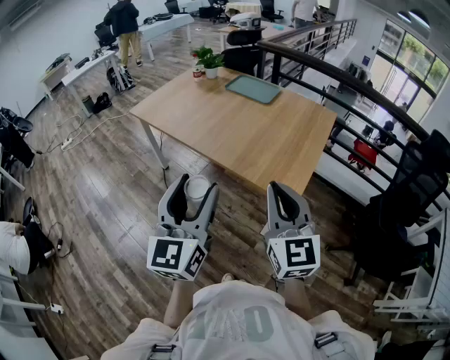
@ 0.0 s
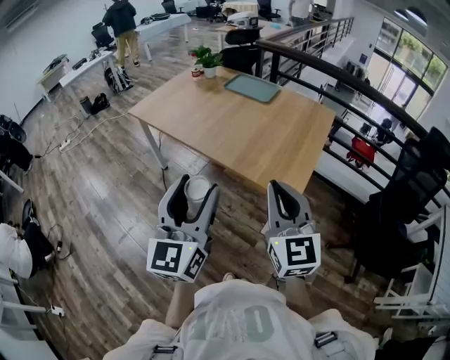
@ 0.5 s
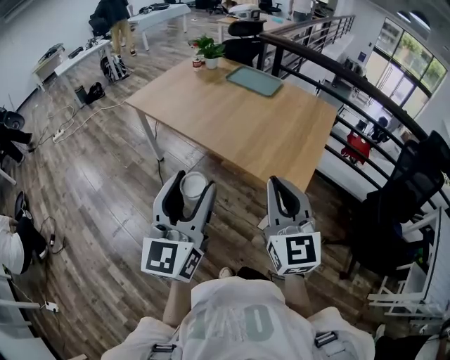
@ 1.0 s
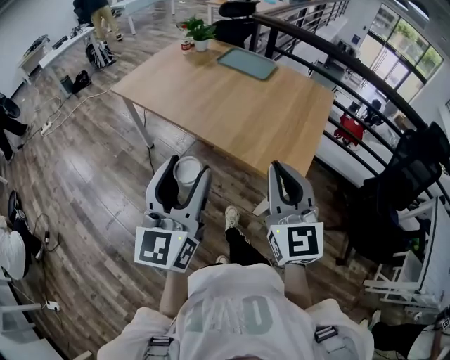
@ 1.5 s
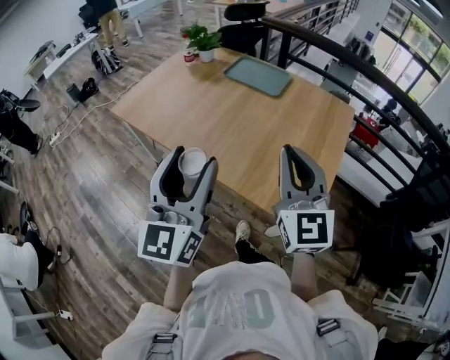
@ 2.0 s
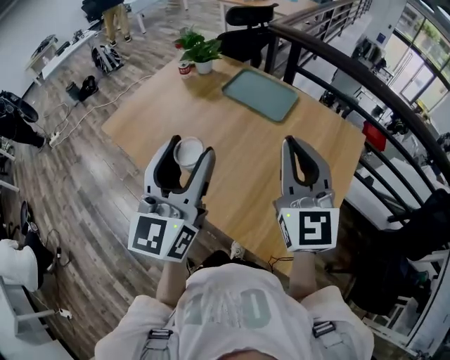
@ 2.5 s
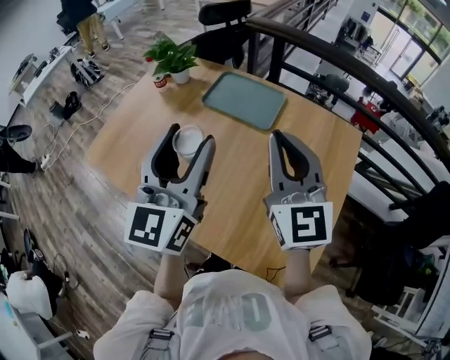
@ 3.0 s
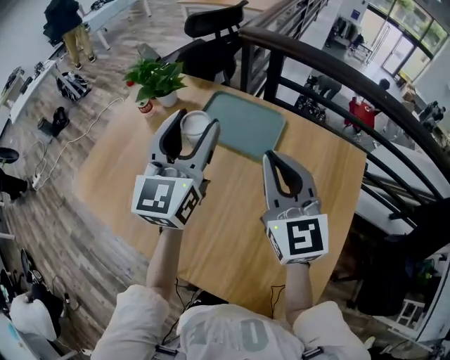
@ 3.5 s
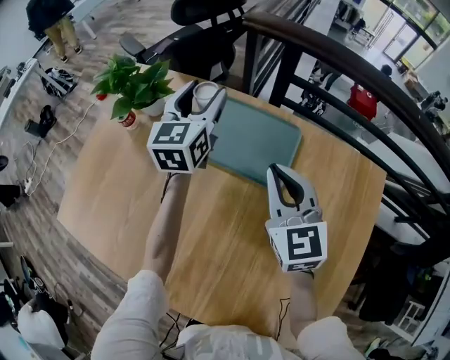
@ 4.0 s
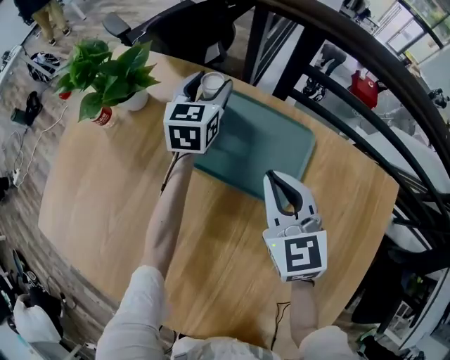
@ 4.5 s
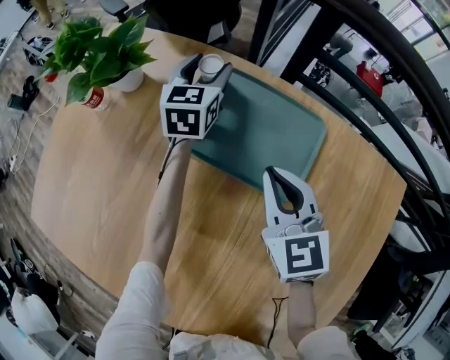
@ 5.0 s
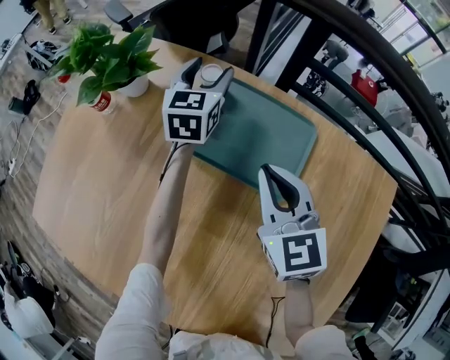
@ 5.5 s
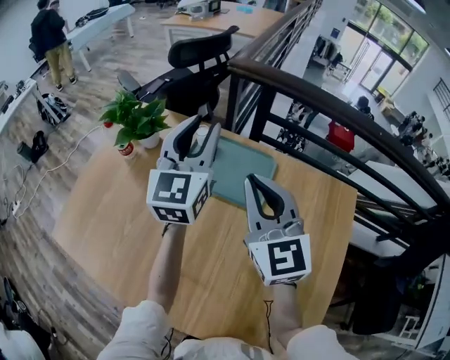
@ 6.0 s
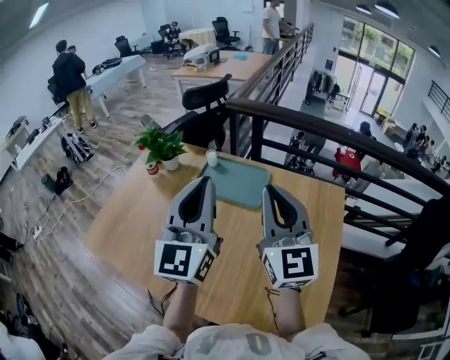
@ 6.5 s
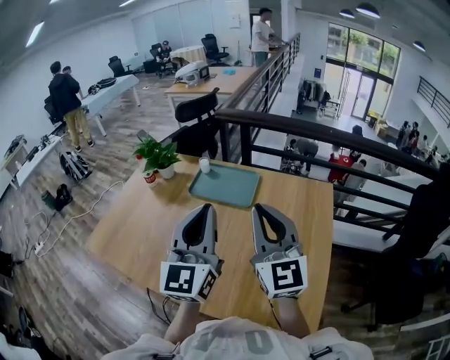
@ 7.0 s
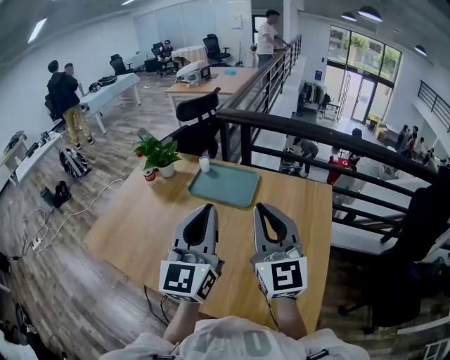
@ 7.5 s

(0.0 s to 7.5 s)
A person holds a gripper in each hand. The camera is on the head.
0.0 s - 2.0 s: Both grippers travel together forward, approximately 25 cm.
2.0 s - 4.0 s: The two grippers travel together, forward, approximately 70 cm. The left gripper rotates roughly 20 degrees. The right gripper swivels roughly 20 degrees.
4.0 s - 5.5 s: The right gripper shifts approximately 10 cm downward; the left gripper is displaced downward and forward by roughly 15 cm.
5.5 s - 7.5 s: The right gripper is displaced backward and upward by some 40 cm, and points its fingers about 30 degrees further upward. The left gripper is displaced backward and upward by about 60 cm, swivels roughly 30 degrees, and closes up.

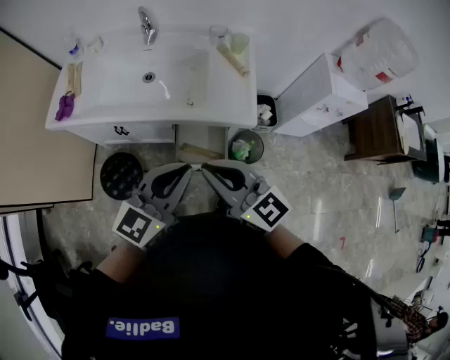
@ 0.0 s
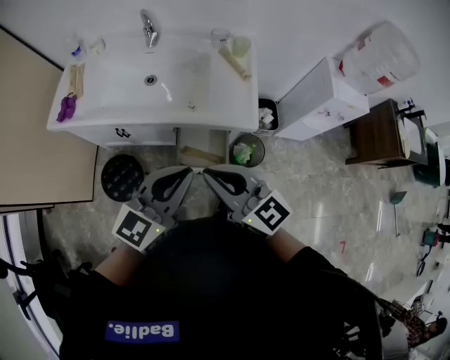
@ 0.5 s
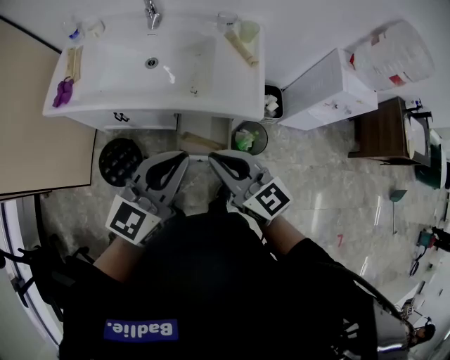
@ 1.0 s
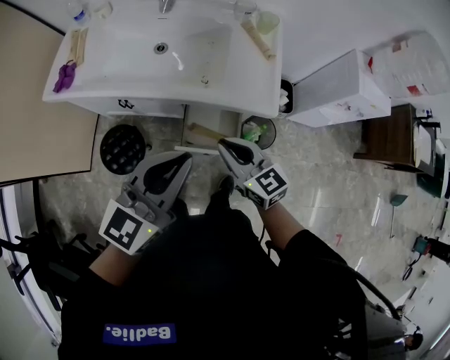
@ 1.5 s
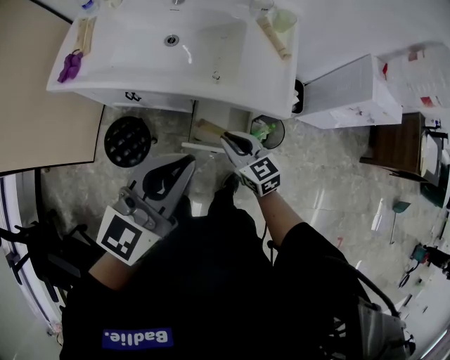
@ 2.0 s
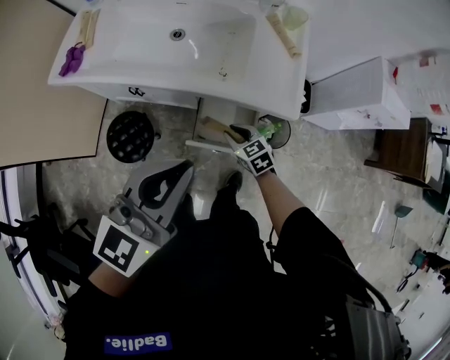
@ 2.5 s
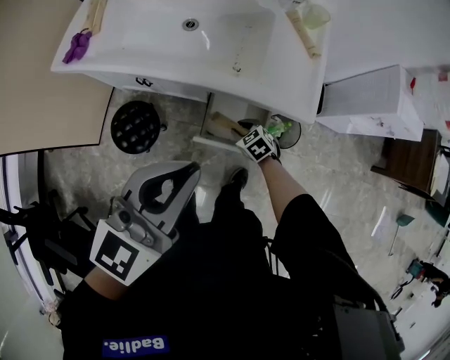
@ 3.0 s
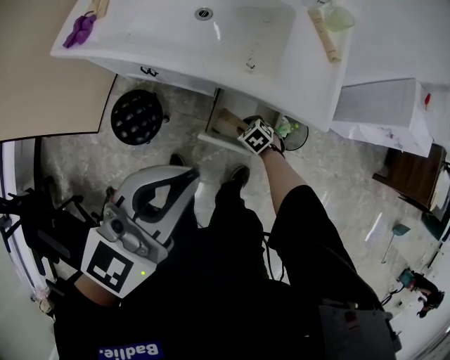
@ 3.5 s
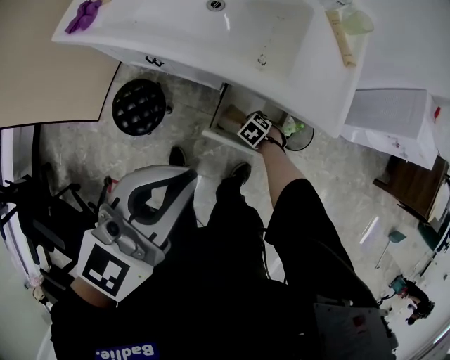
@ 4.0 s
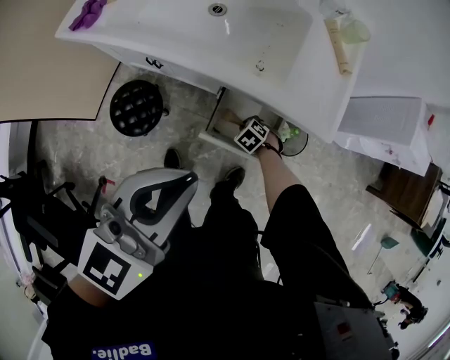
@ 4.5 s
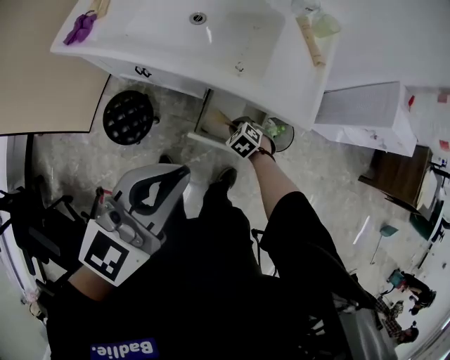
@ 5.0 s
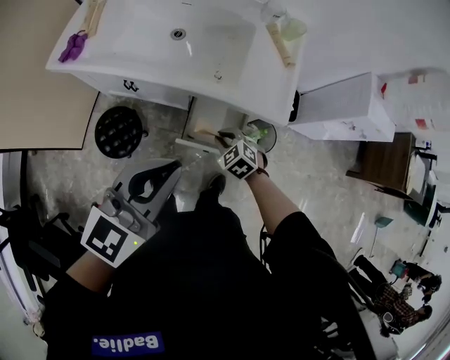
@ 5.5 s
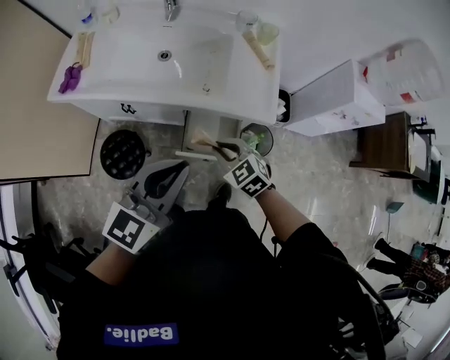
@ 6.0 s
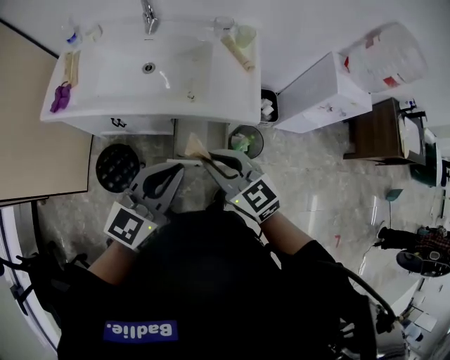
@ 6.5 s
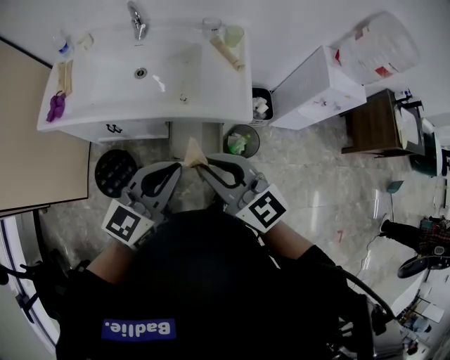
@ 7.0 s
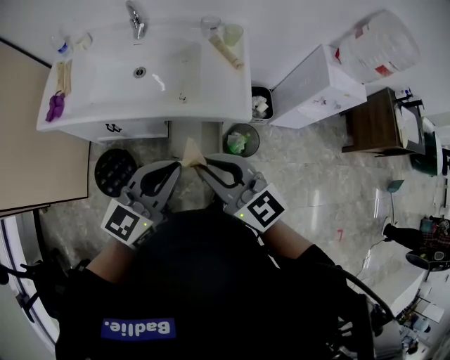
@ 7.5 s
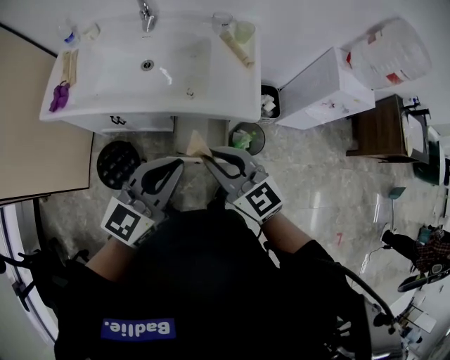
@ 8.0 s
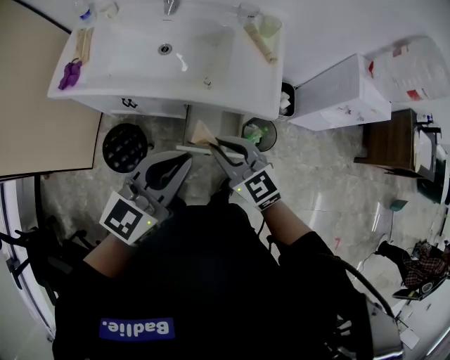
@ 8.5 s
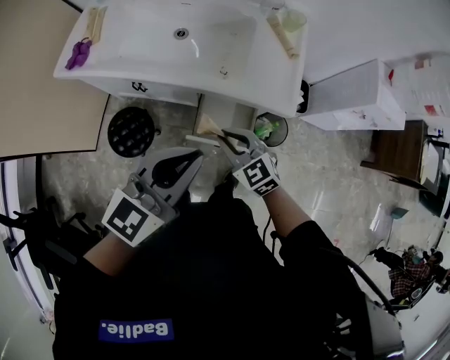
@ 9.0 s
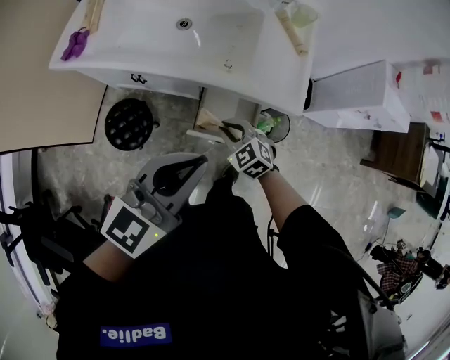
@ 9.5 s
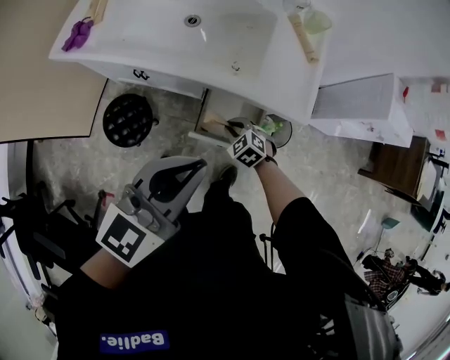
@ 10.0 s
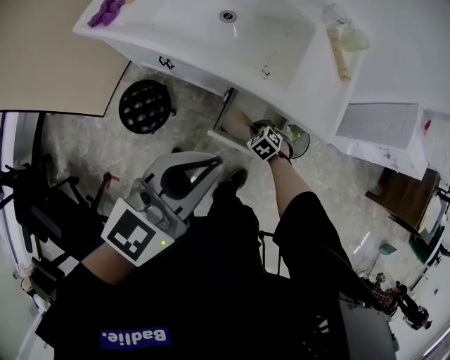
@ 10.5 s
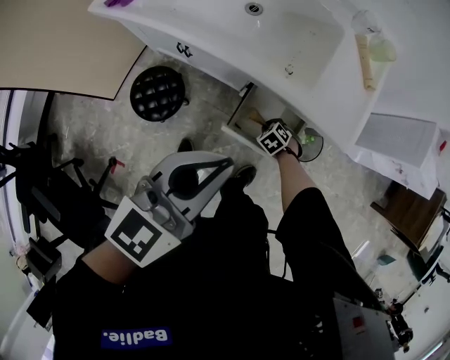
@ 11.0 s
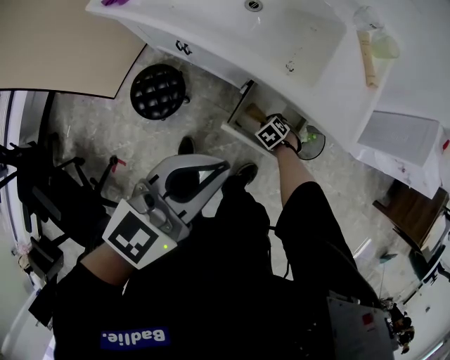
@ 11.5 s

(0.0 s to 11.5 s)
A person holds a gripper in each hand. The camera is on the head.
0.0 s - 2.0 s: The right gripper travels downward by some 25 cm, and changes its angle by about 20 degrees; the left gripper ends up approximately 5 cm from where it was.
2.0 s - 4.0 s: The right gripper heads downward, covering roughly 35 cm, and points its fingers some 50 degrees further downward, while the left gripper travels downward by approximately 5 cm.
4.0 s - 6.0 s: The right gripper moves upward, approximately 35 cm, and angles its fingers upward, by approximately 40 degrees; the left gripper moves approximately 10 cm.
6.0 s - 7.5 s: The right gripper moves upward, roughly 20 cm, and angles its fingers upward, by roughly 30 degrees.
7.5 s - 9.5 s: The right gripper is displaced downward by approximately 30 cm, and tilts its fingers roughly 40 degrees downward; the left gripper shifts by roughly 5 cm.
9.5 s - 11.5 s: The right gripper travels downward by about 25 cm, and points its fingers about 40 degrees further downward, while the left gripper travels downward by approximately 5 cm.

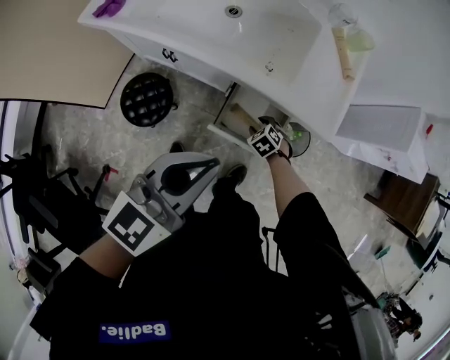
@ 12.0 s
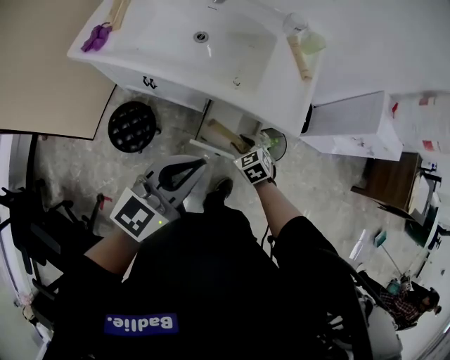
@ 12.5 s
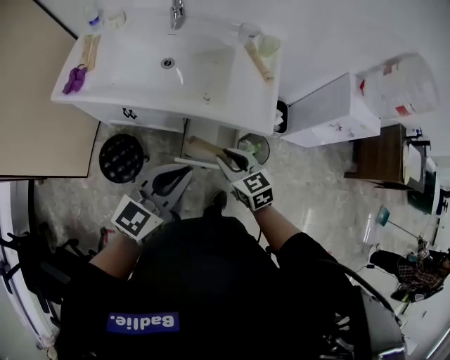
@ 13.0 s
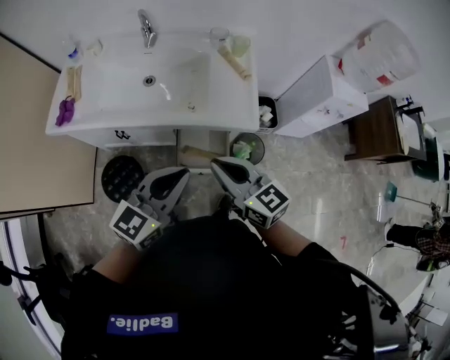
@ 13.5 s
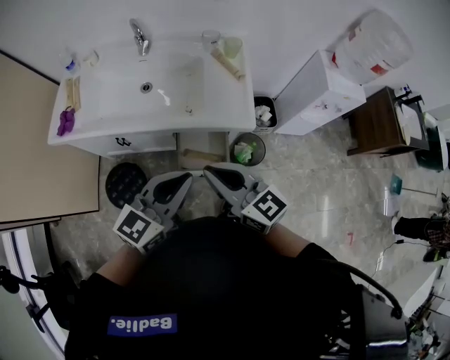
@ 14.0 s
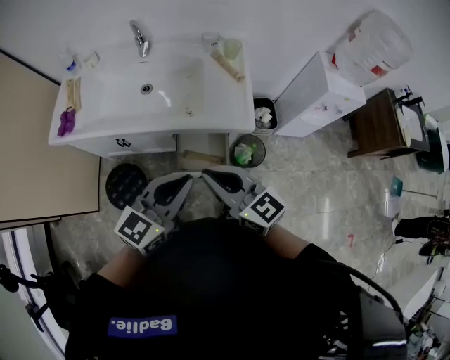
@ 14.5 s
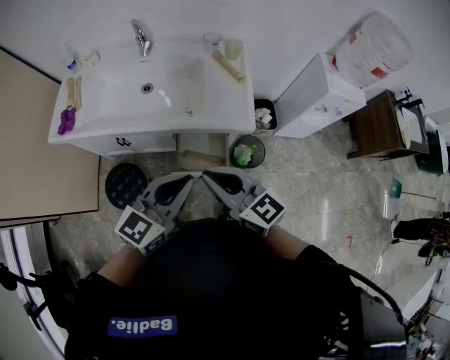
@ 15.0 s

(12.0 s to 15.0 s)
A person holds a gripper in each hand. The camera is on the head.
12.0 s - 13.5 s: The left gripper heads upward and to the right, covering about 10 cm, while the right gripper moves upward, some 50 cm, tilts its fingers approximately 60 degrees upward, and closes.
13.5 s - 15.0 s: The grippers make only small movements.

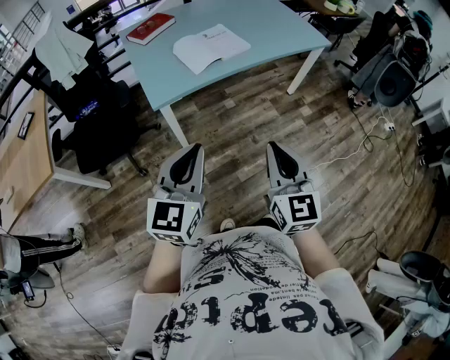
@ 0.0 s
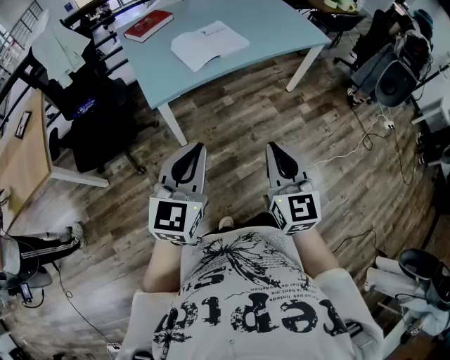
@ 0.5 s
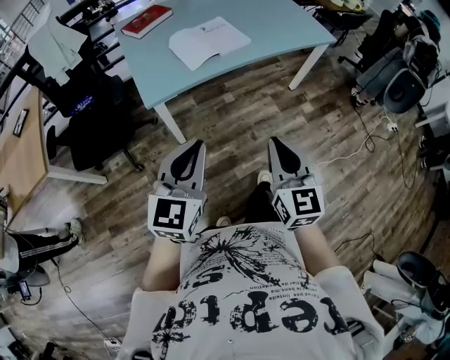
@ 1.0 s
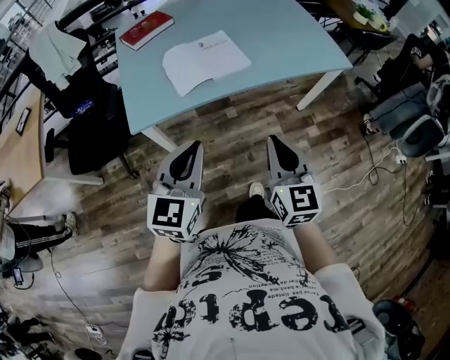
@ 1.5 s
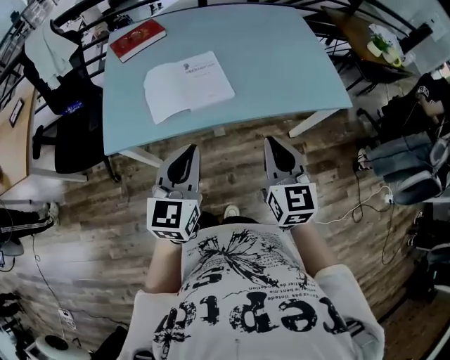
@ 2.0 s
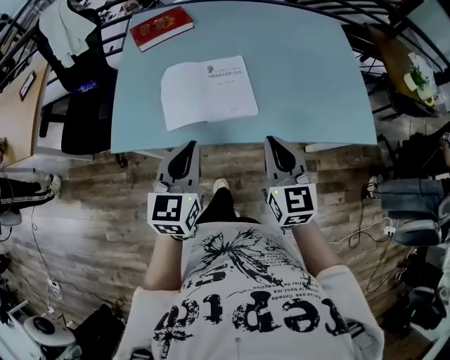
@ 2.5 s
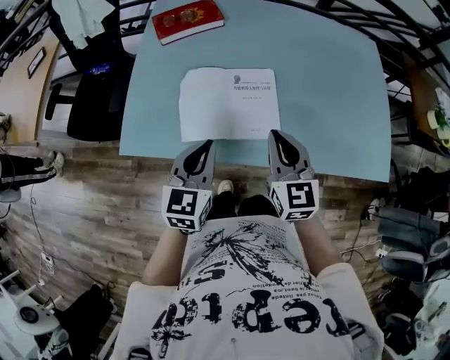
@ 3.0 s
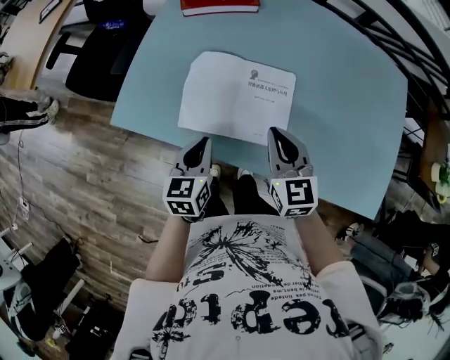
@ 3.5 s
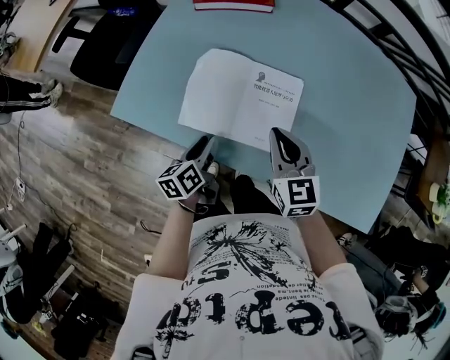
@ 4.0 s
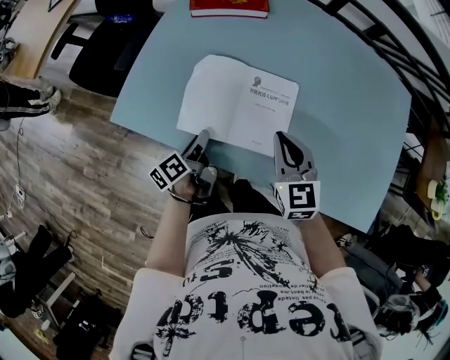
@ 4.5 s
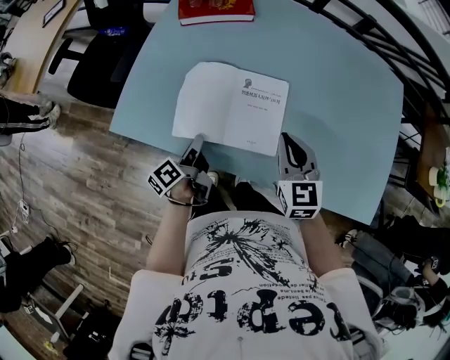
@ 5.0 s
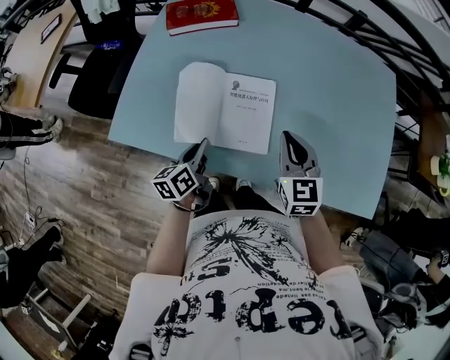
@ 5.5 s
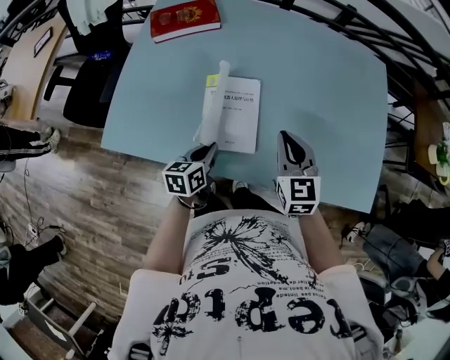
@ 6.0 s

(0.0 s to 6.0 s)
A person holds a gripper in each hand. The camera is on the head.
0.0 s - 2.0 s: The two grippers travel together, forward and to the right, approximately 40 cm. The left gripper swivels approximately 20 degrees.
2.0 s - 4.0 s: The left gripper is displaced downward by approximately 25 cm, rotates around the line of its fingers by roughly 60 degrees, counterclockwise from behind, and opens its fingers. Meanwhile the right gripper changes place by roughly 35 cm, and rotates some 40 degrees.
4.0 s - 6.0 s: The two grippers go roughly 10 cm to the right. The left gripper rotates about 30 degrees, and closes its fingers.
